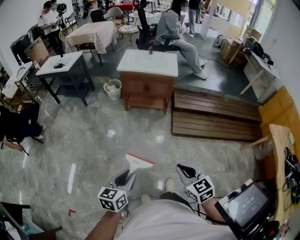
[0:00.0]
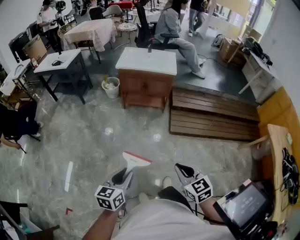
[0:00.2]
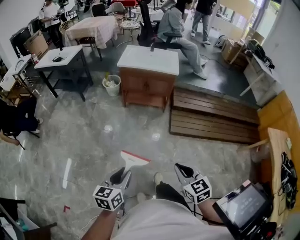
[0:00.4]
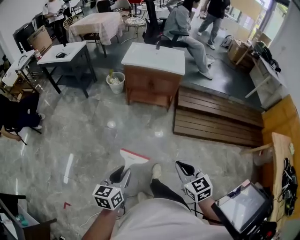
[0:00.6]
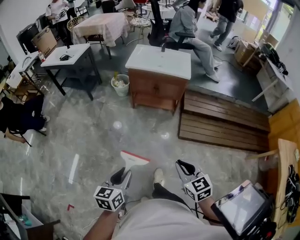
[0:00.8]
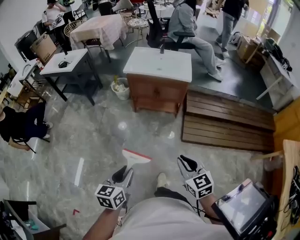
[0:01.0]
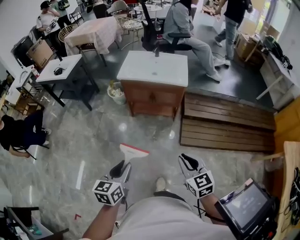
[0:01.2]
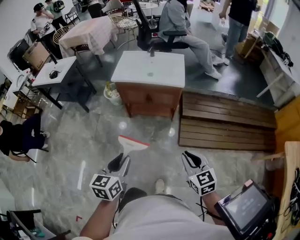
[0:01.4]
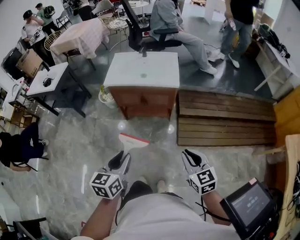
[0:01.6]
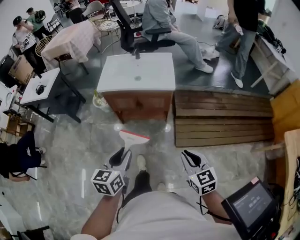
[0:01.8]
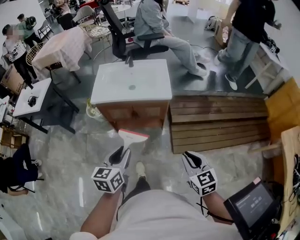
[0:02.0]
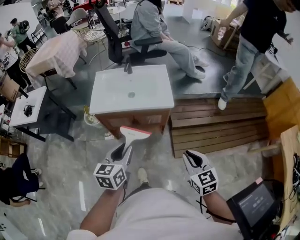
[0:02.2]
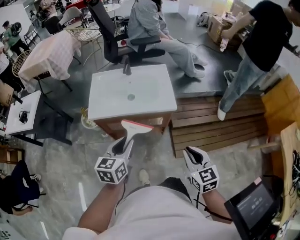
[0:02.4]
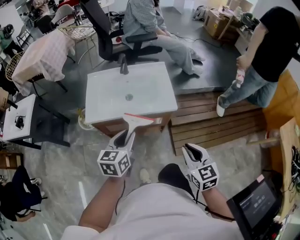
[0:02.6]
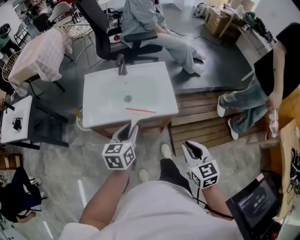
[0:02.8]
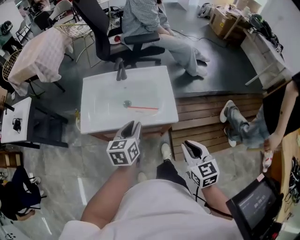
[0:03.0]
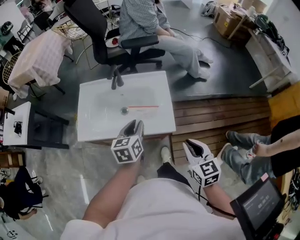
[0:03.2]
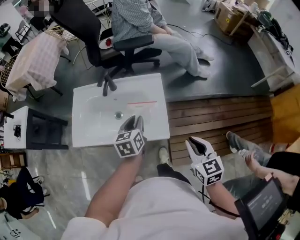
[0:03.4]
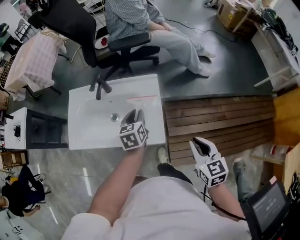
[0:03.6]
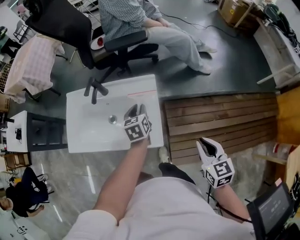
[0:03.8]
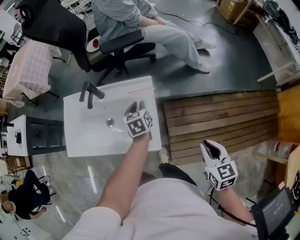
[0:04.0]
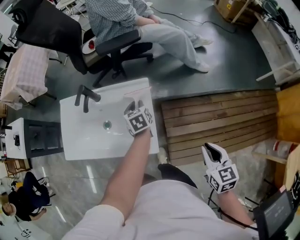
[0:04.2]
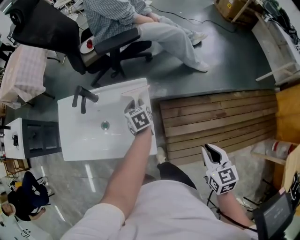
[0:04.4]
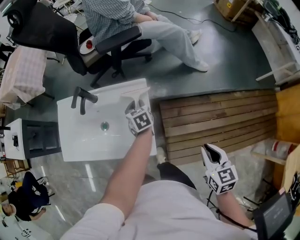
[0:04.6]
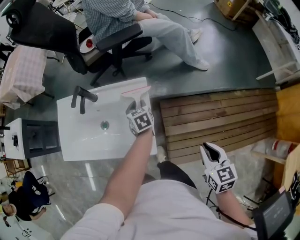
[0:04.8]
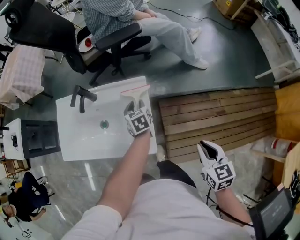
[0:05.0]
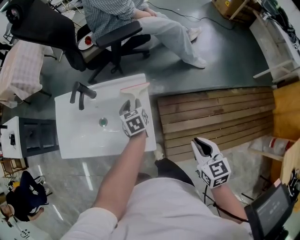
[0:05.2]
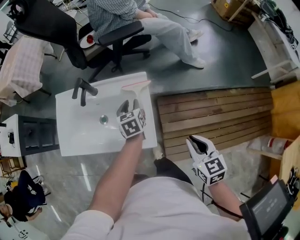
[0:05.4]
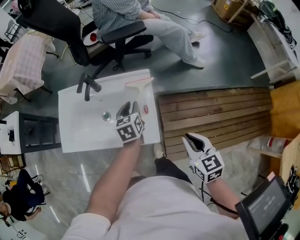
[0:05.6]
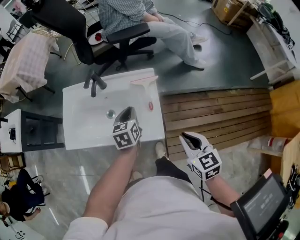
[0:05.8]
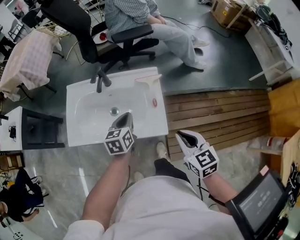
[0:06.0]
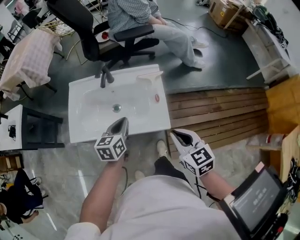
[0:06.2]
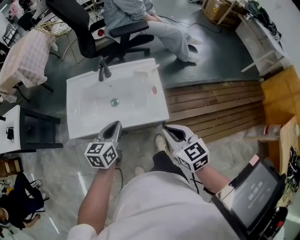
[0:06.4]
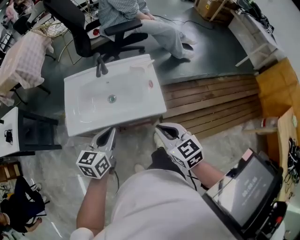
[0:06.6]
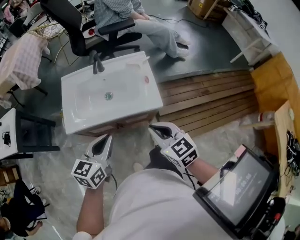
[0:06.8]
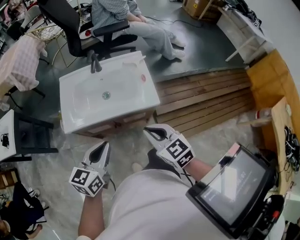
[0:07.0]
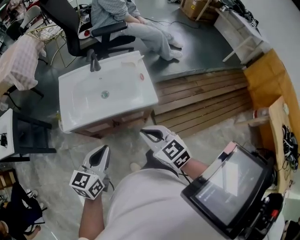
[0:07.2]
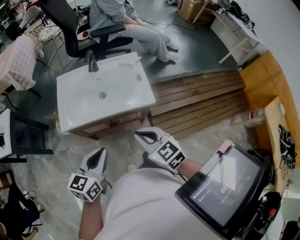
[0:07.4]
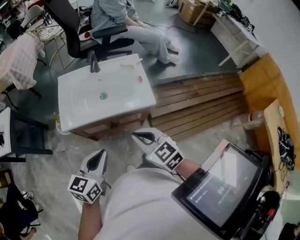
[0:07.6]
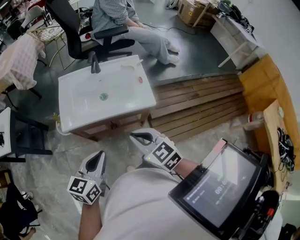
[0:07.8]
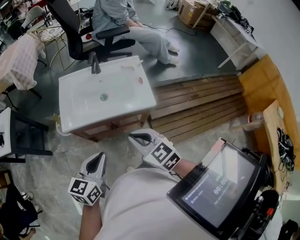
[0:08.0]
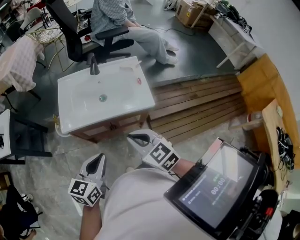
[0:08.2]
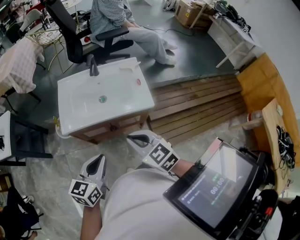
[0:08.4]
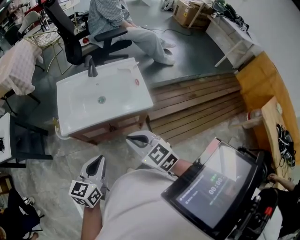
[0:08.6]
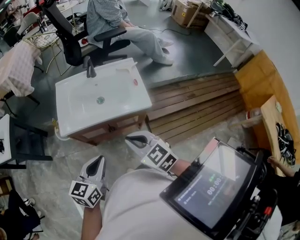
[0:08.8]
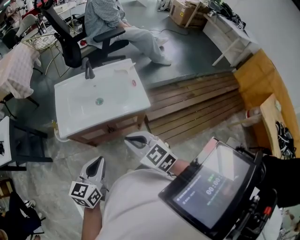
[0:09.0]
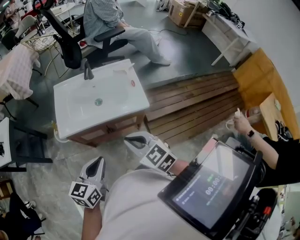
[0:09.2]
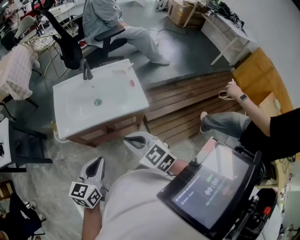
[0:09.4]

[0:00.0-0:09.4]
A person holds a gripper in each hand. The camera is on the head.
0:00.0 to 0:01.6: Both grippers are carried forward, some 40 cm.
0:01.6 to 0:03.2: The two grippers travel together, forward, roughly 60 cm.
0:03.2 to 0:04.8: The right gripper heads to the right and forward, covering about 25 cm, while the left gripper goes about 35 cm forward, to the right and downward, and changes its angle by approximately 20 degrees.
0:04.8 to 0:06.2: The left gripper moves to the left, backward and upward, roughly 35 cm, turns by some 30 degrees, and closes up. The right gripper shifts roughly 25 cm to the left.
0:06.2 to 0:07.8: The left gripper moves backward and to the left, some 30 cm, while the right gripper goes roughly 25 cm to the left and backward.
0:07.8 to 0:09.4: The grippers move only a little.

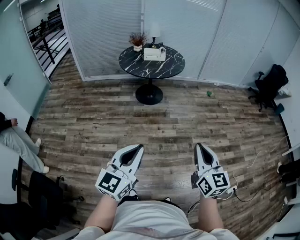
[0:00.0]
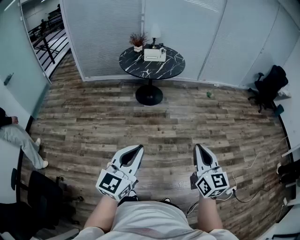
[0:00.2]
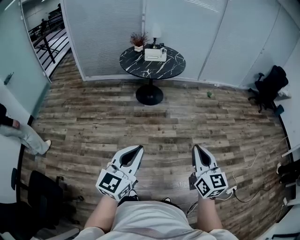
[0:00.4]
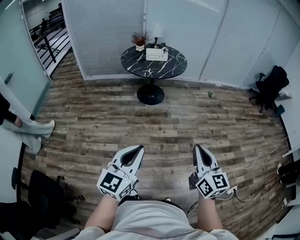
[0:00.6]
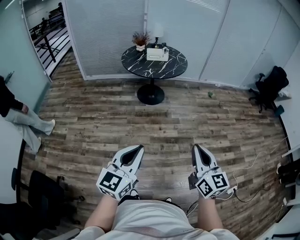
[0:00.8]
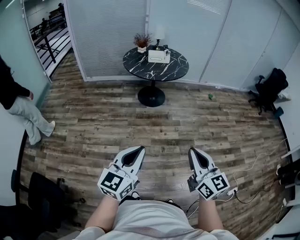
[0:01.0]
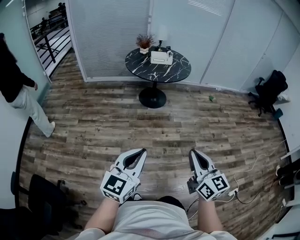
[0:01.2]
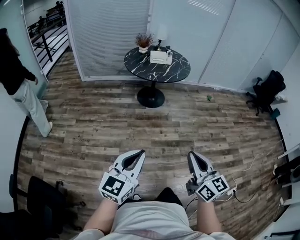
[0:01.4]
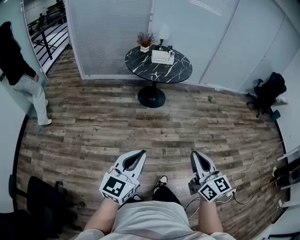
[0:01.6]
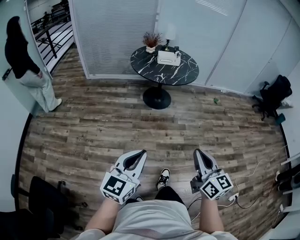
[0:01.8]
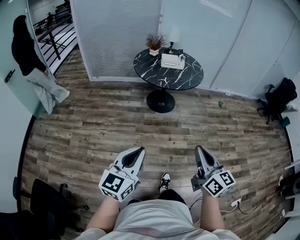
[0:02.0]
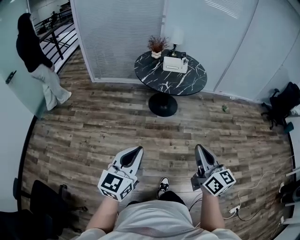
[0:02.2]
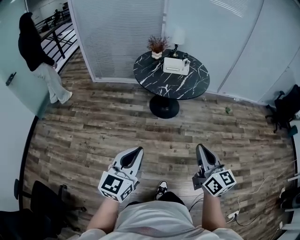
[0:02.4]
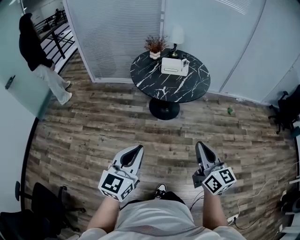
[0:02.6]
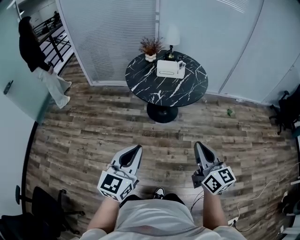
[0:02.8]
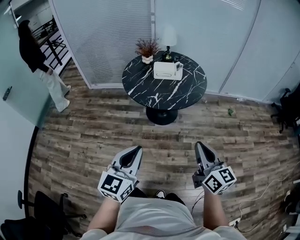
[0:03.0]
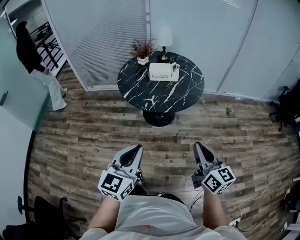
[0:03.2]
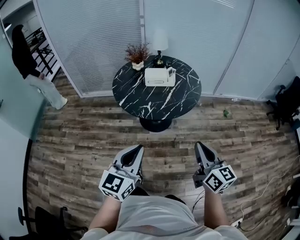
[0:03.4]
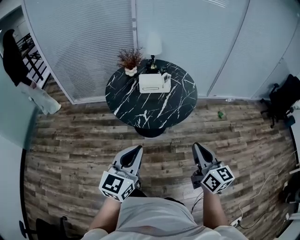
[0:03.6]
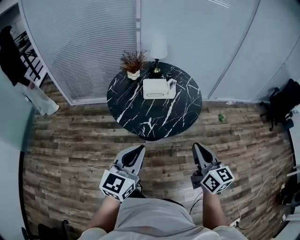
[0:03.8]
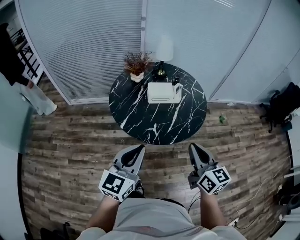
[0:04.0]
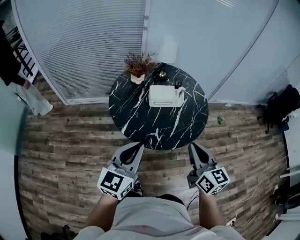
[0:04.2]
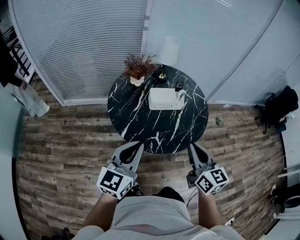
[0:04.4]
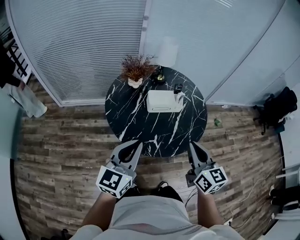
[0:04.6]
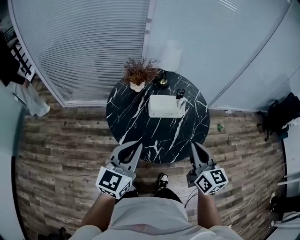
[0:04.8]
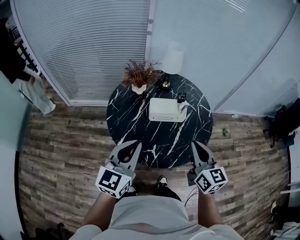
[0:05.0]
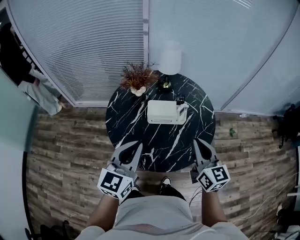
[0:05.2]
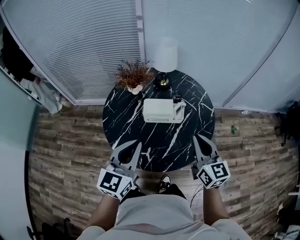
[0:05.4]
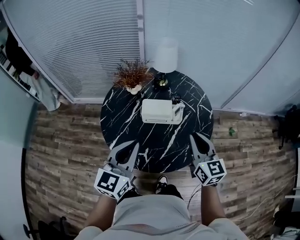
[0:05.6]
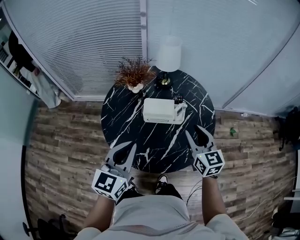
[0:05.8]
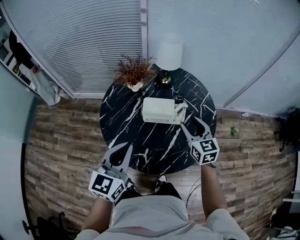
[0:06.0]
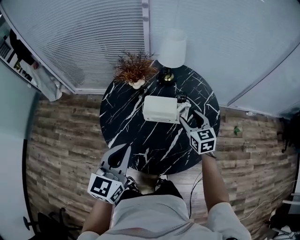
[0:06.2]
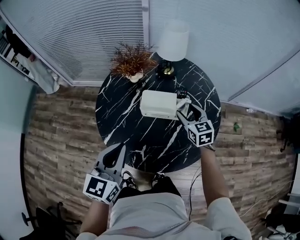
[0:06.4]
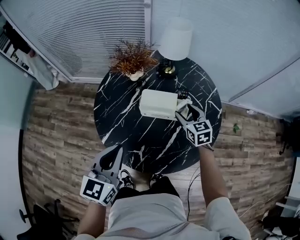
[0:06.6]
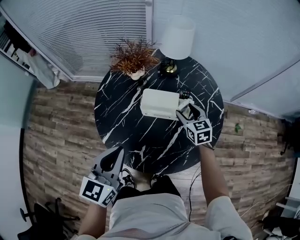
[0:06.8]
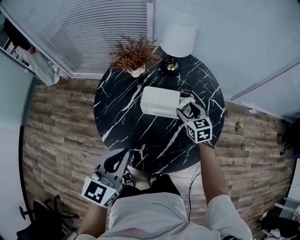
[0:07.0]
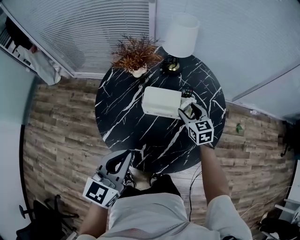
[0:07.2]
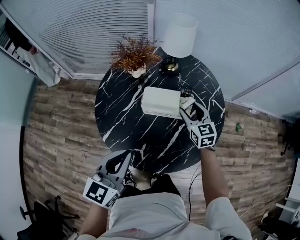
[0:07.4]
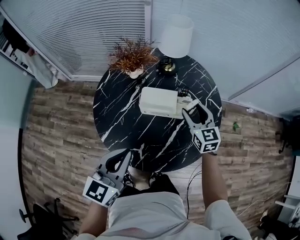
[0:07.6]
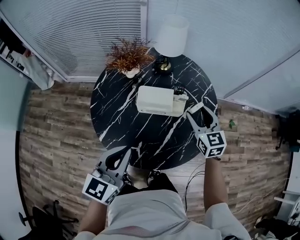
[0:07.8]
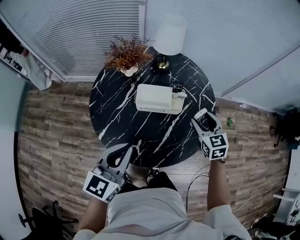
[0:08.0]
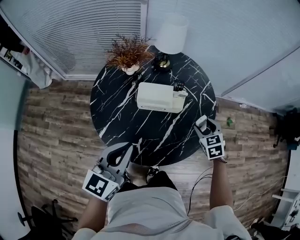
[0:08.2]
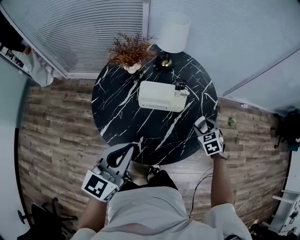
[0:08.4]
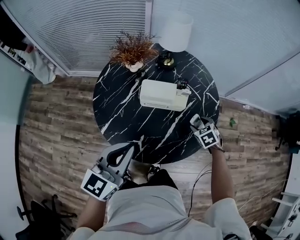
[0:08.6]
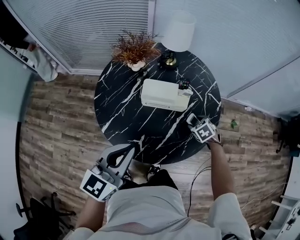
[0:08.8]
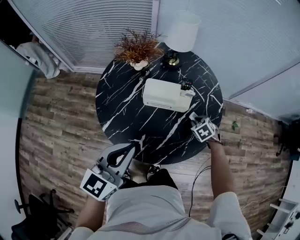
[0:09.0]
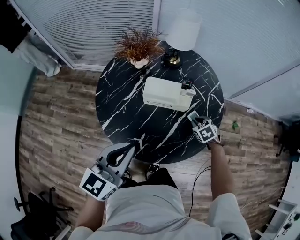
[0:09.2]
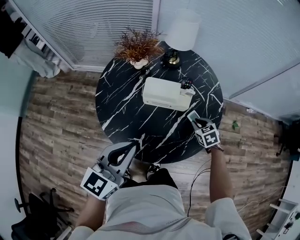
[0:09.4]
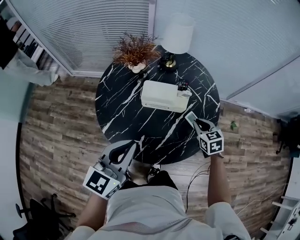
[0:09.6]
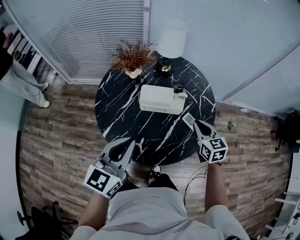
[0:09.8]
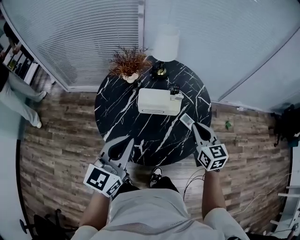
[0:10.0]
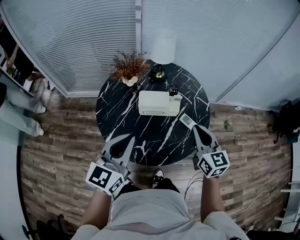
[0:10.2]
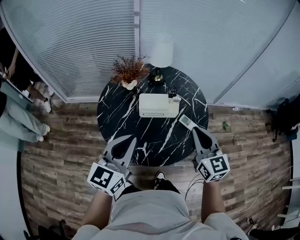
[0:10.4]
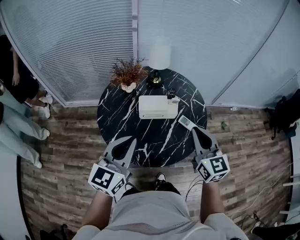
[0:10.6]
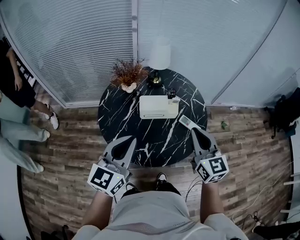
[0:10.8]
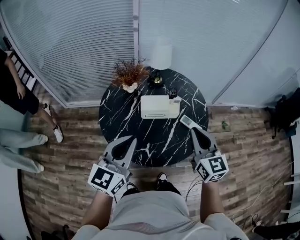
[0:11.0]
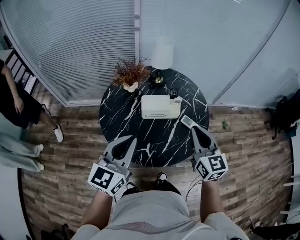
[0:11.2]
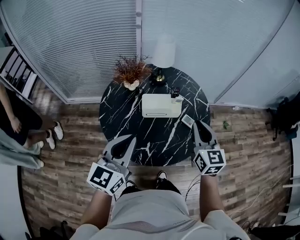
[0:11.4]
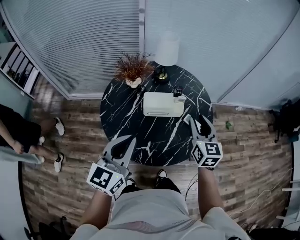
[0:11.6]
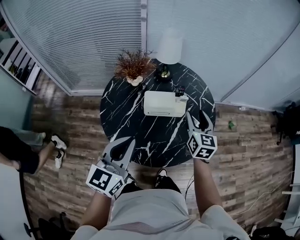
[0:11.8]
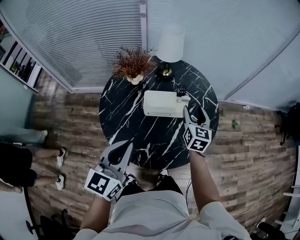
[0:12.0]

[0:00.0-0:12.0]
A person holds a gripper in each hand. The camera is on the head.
0:00.0 to 0:01.6: Both grippers travel together to the left, about 10 cm.
0:01.6 to 0:03.0: The grippers both shift forward by about 40 cm.
0:03.0 to 0:04.4: The right gripper moves forward and to the left, some 35 cm. The left gripper shifts some 35 cm forward.
0:04.4 to 0:06.0: The right gripper heads forward, covering approximately 30 cm, and opens up. Meanwhile the left gripper travels forward and to the right by approximately 15 cm.
0:06.0 to 0:07.6: The right gripper travels forward by approximately 5 cm.
0:07.6 to 0:09.0: The right gripper moves downward and to the right, approximately 20 cm, angles its fingers downward, by some 50 degrees, and closes.
0:09.0 to 0:10.4: The left gripper moves upward, about 5 cm, while the right gripper travels upward and backward by approximately 35 cm, and angles its fingers upward, by about 60 degrees.
0:10.4 to 0:12.0: The right gripper moves forward and downward, approximately 20 cm, turns by approximately 20 degrees, and opens up.

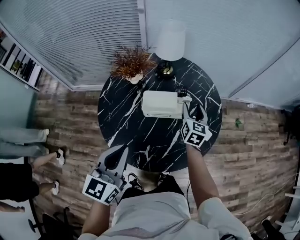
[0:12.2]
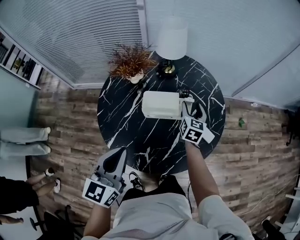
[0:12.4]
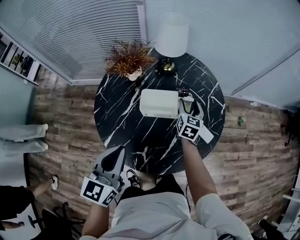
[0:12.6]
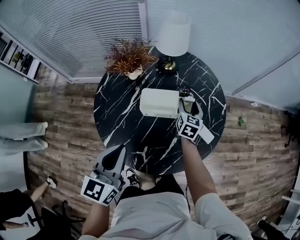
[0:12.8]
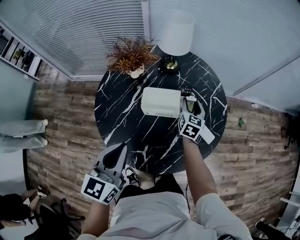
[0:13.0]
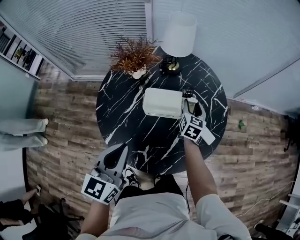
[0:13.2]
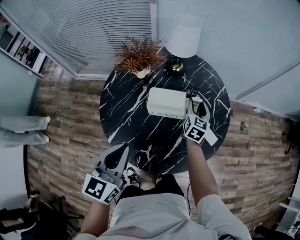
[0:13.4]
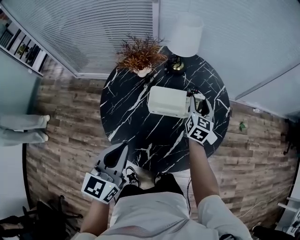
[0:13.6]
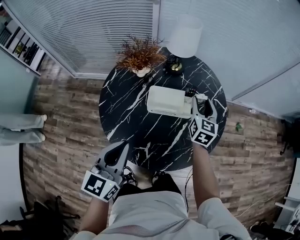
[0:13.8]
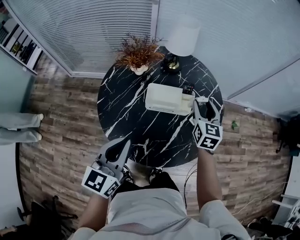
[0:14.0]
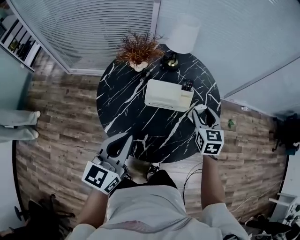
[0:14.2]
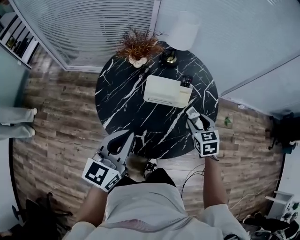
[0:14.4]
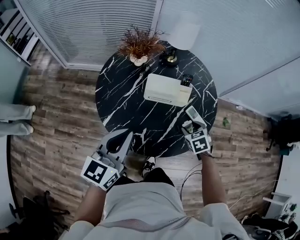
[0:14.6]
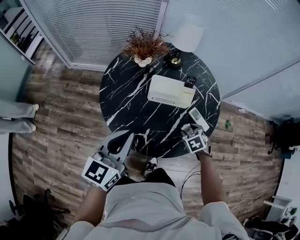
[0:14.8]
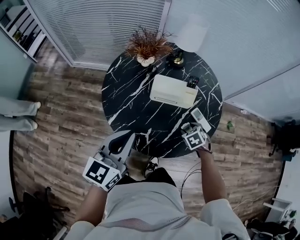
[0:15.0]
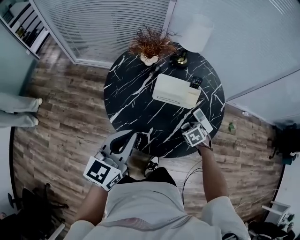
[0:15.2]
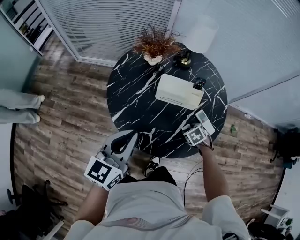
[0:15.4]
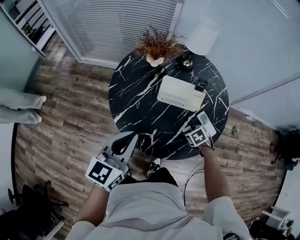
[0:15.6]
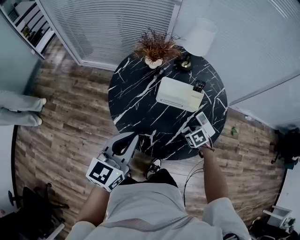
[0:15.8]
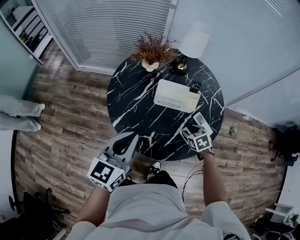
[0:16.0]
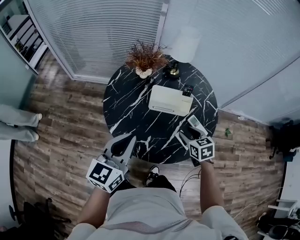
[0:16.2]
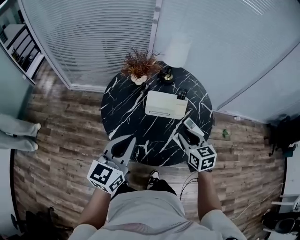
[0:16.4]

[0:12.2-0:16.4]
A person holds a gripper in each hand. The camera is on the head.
0:13.6 to 0:15.0: The right gripper travels backward and downward by some 25 cm, and angles its fingers downward, by roughly 50 degrees.
0:15.0 to 0:16.4: The right gripper moves upward, roughly 20 cm, and tilts its fingers some 40 degrees upward.
